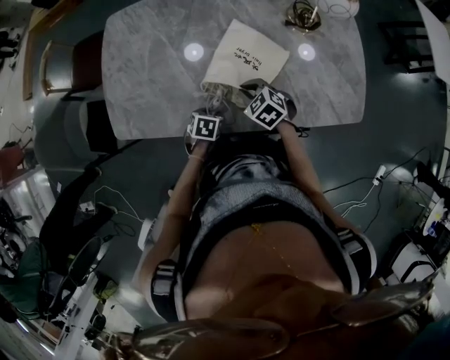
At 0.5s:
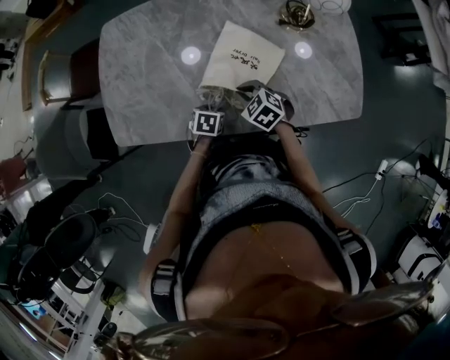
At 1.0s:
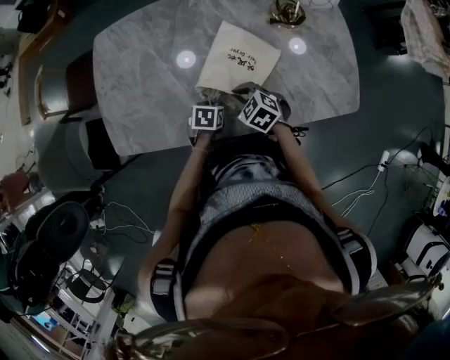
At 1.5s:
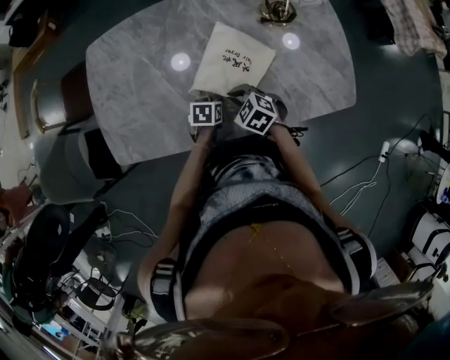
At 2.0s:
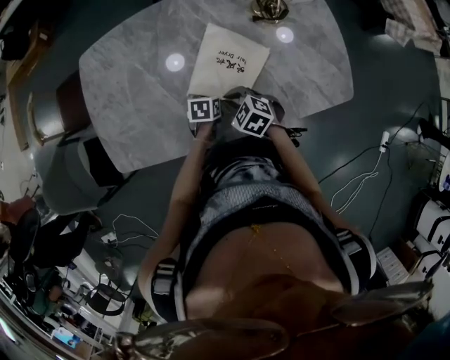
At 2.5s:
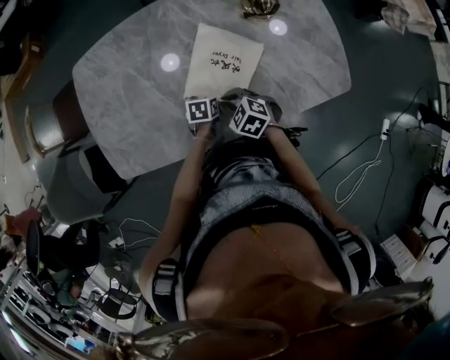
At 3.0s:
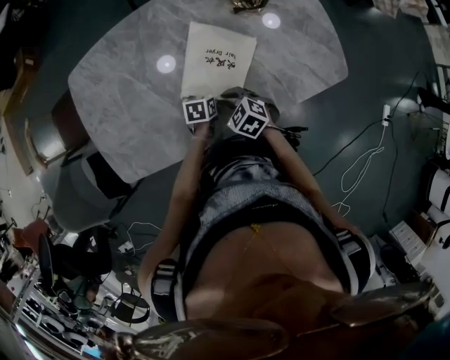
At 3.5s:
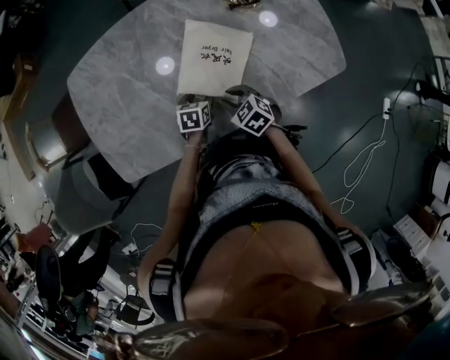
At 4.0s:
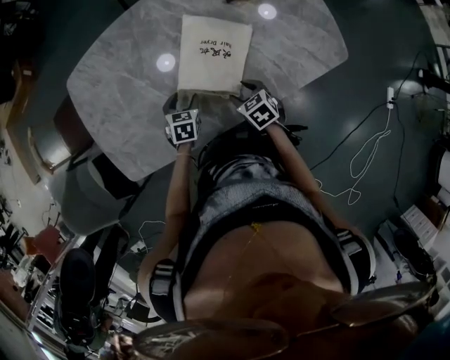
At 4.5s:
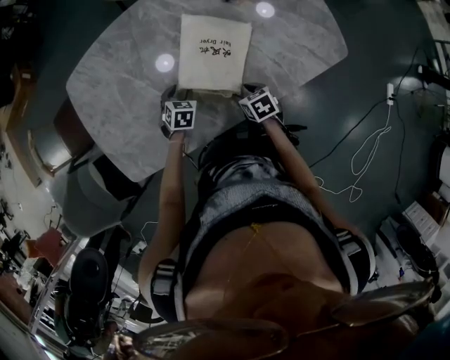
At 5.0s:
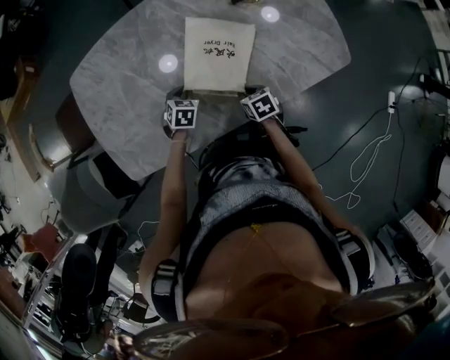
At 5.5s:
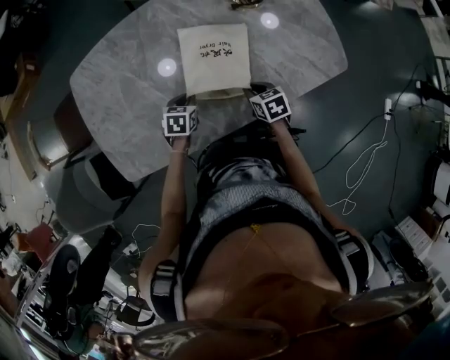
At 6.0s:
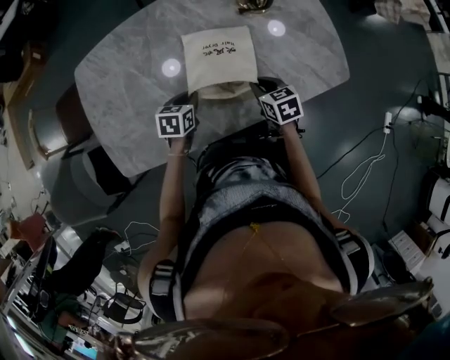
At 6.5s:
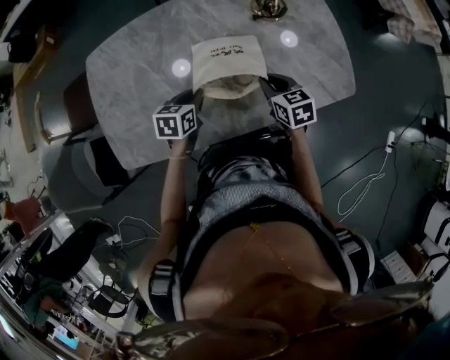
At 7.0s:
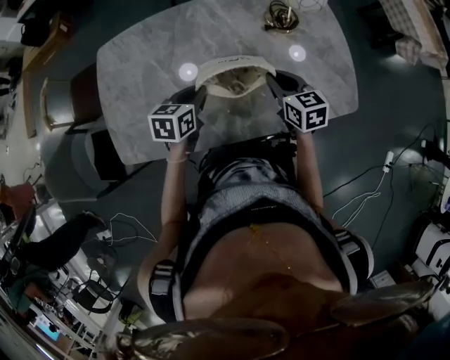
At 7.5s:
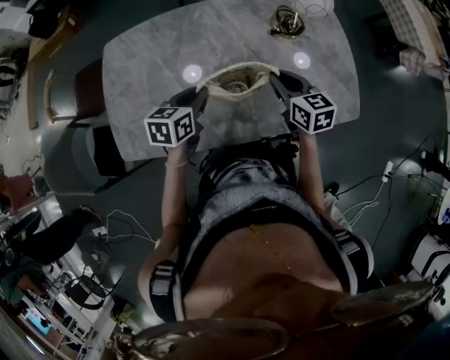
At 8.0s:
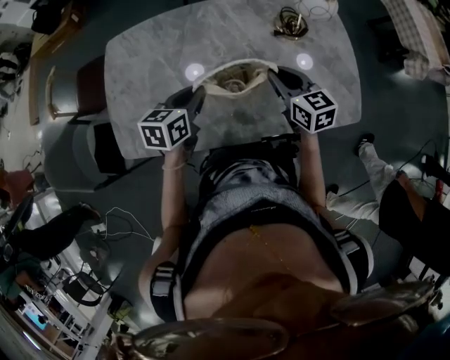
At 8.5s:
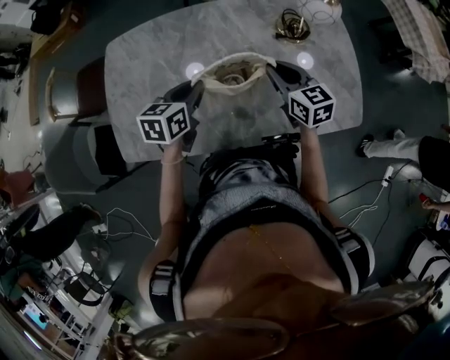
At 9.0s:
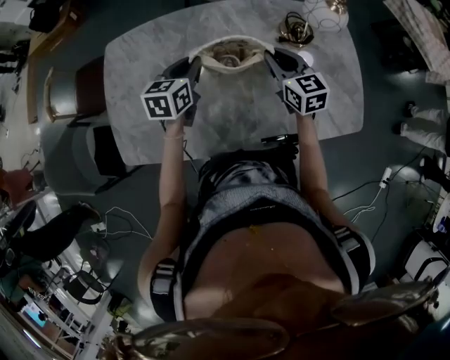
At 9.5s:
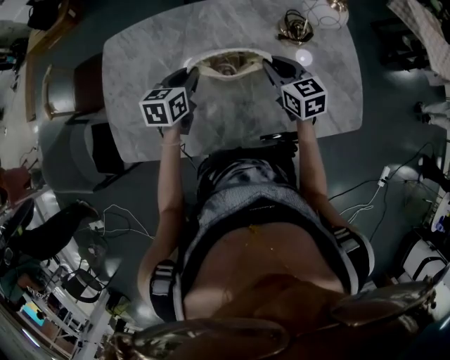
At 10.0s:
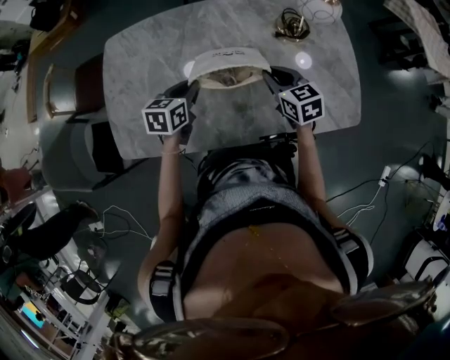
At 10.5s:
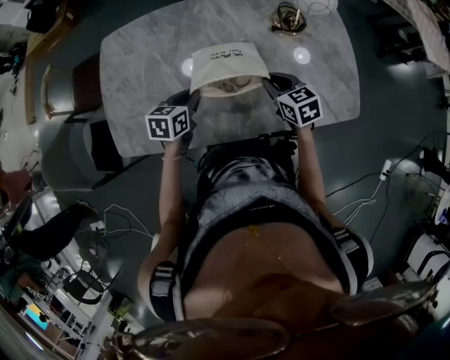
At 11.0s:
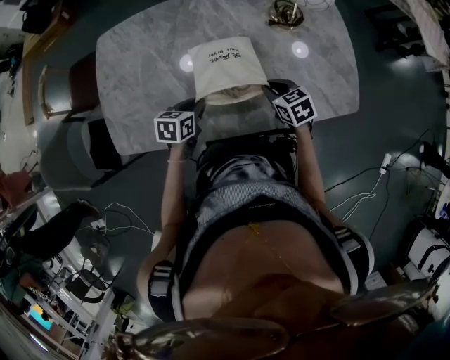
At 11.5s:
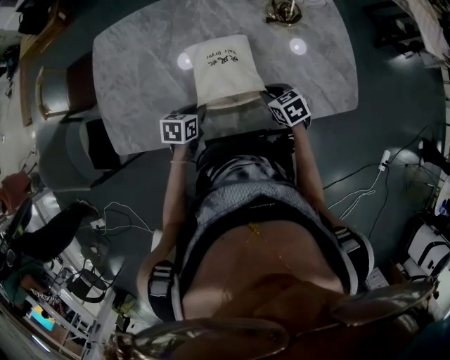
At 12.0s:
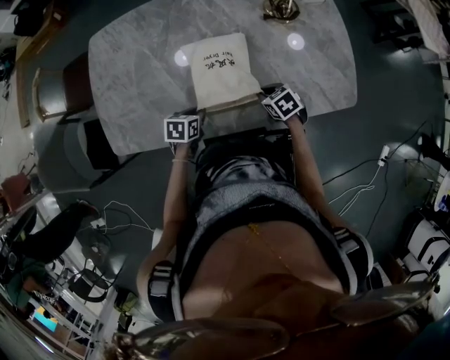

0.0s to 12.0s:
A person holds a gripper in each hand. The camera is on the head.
0.0s to 2.0s: The left gripper shifts roughly 15 cm forward and to the right.
2.0s to 4.0s: The right gripper moves to the right, roughly 5 cm, rotates about 40 degrees, and opens up; the left gripper travels to the left by approximately 10 cm, and turns by approximately 30 degrees.
4.0s to 6.0s: The right gripper heads upward and to the right, covering roughly 10 cm, and closes its fingers. The left gripper moves upward, about 5 cm, and closes its fingers.
6.0s to 8.0s: The right gripper goes about 15 cm upward and forward, and swivels approximately 30 degrees, while the left gripper travels upward by some 15 cm, and swivels about 20 degrees.
8.0s to 10.0s: The right gripper travels forward and back again, approximately 10 cm each way, while the left gripper heads downward, covering approximately 5 cm, and travels forward and back again, some 10 cm each way.
10.0s to 12.0s: The grippers both shift downward and backward by roughly 20 cm. The left gripper changes its angle by some 20 degrees. Meanwhile the right gripper swivels about 30 degrees.

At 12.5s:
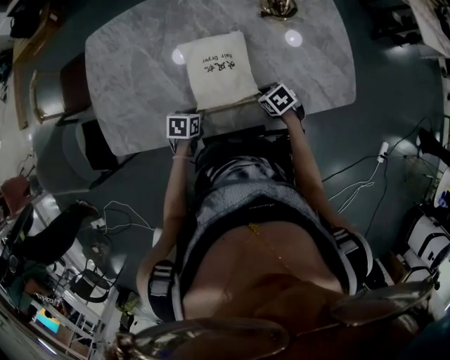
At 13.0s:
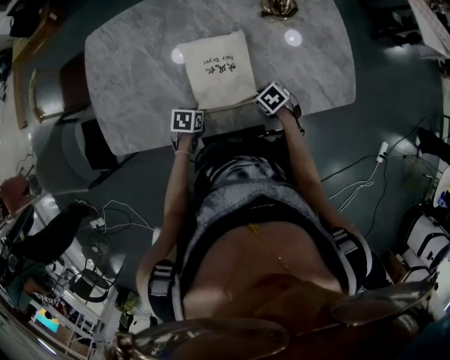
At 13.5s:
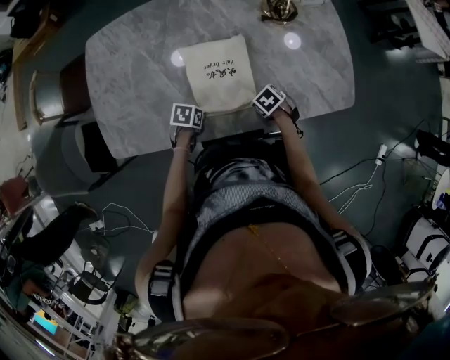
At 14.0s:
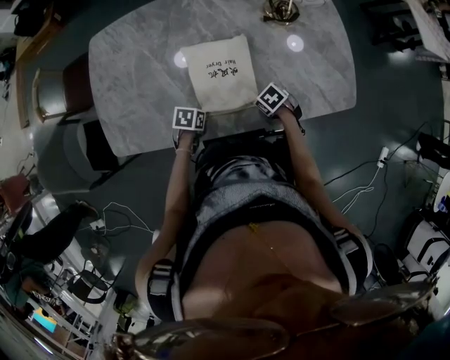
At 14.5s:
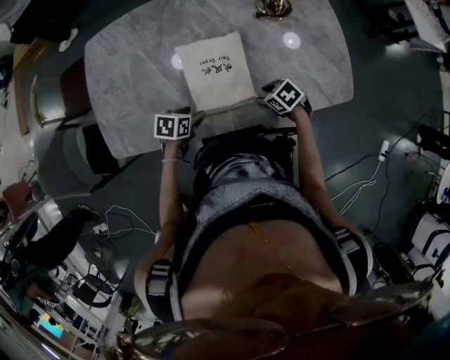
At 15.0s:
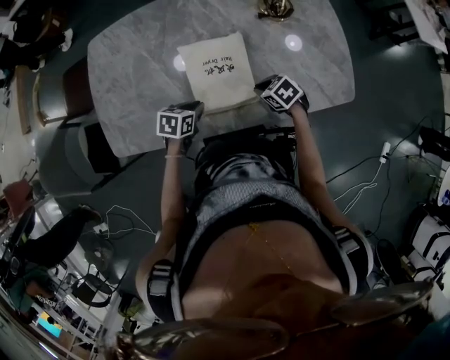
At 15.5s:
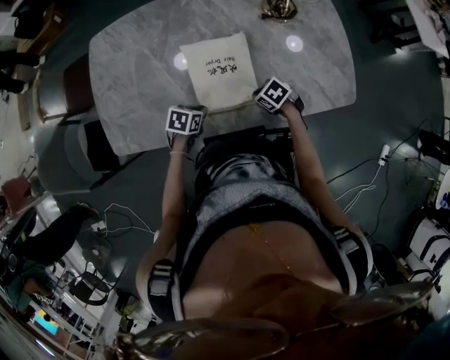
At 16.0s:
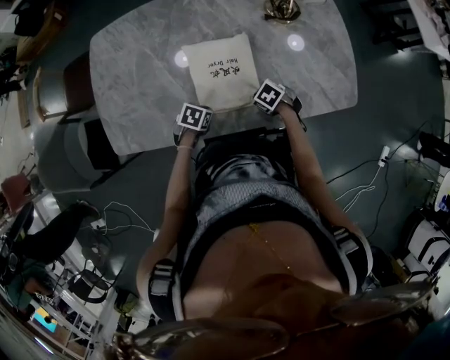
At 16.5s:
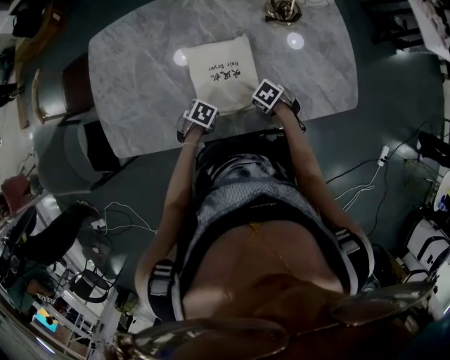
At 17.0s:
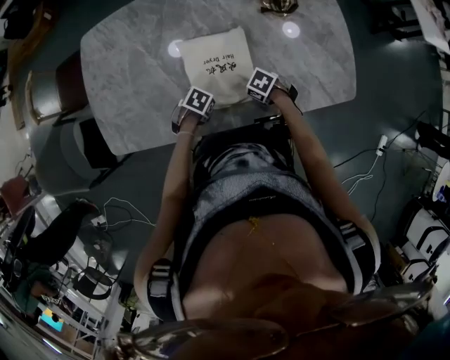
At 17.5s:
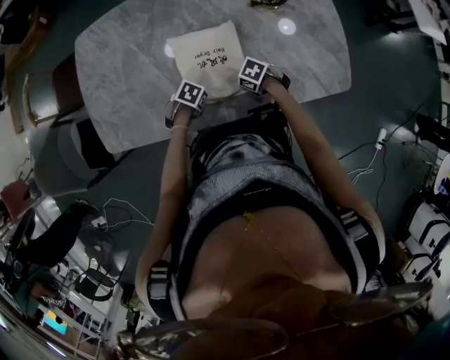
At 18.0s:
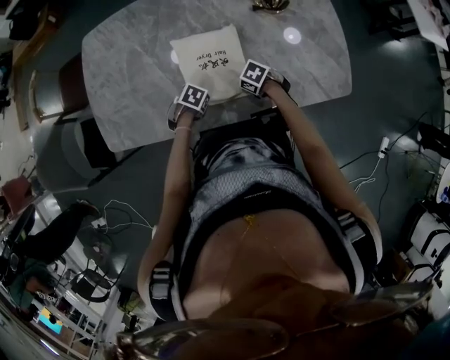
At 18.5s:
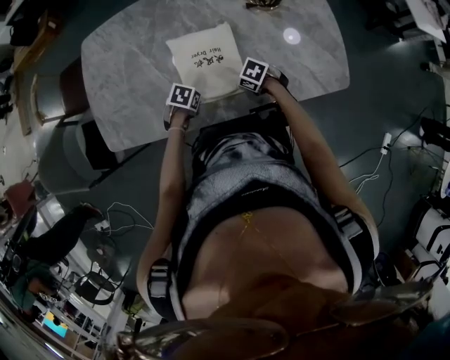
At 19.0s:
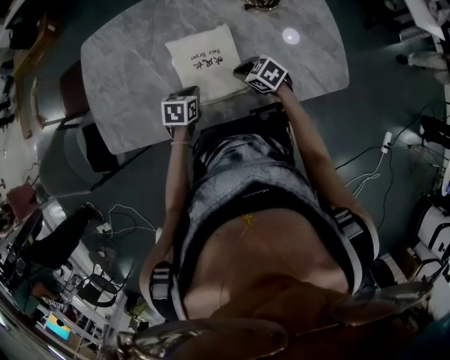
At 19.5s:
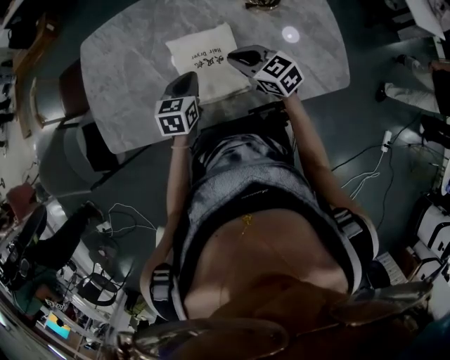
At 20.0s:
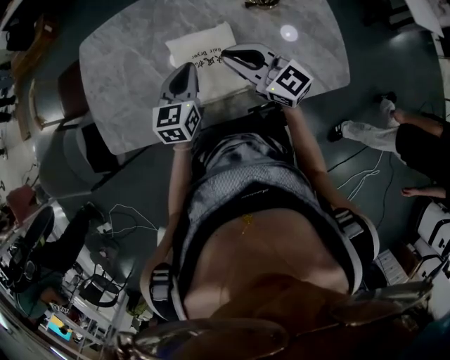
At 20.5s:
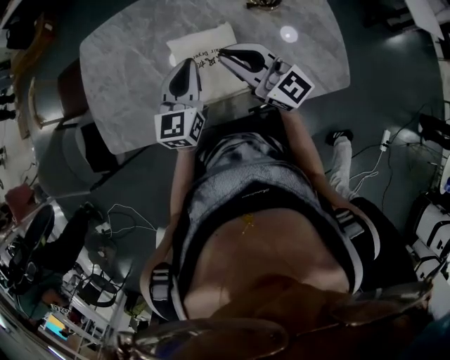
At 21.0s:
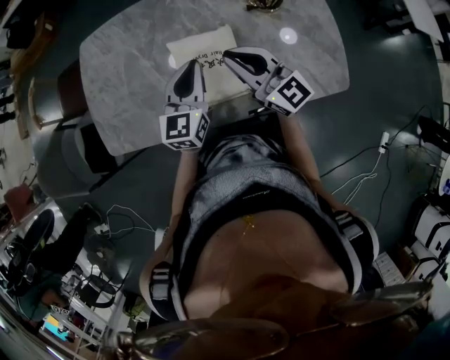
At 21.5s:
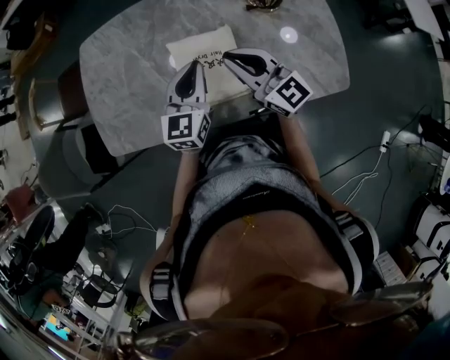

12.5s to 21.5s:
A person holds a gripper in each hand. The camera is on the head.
12.5s to 14.5s: The right gripper opens; the left gripper opens up.
14.5s to 17.0s: The two grippers go some 5 cm downward. The right gripper closes; the left gripper rotates approximately 30 degrees, and closes its fingers.
17.0s to 19.5s: The two grippers go some 20 cm upward. The left gripper points its fingers approximately 30 degrees further upward, while the right gripper tilts its fingers about 40 degrees upward.
19.5s to 21.5s: The two grippers go some 10 cm upward. The left gripper rotates roughly 30 degrees; the right gripper swivels approximately 30 degrees.

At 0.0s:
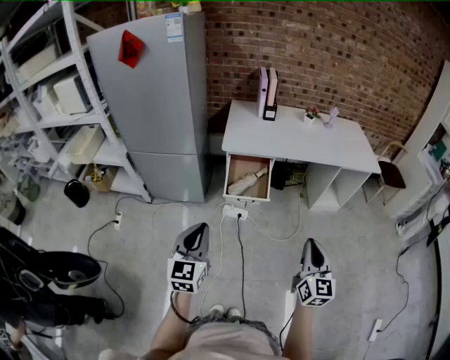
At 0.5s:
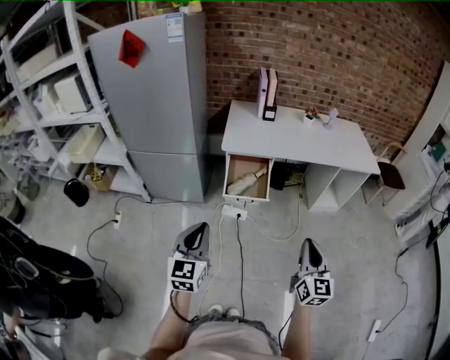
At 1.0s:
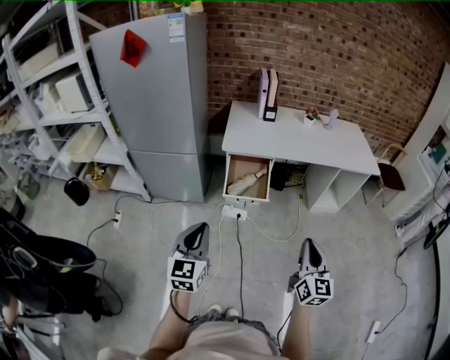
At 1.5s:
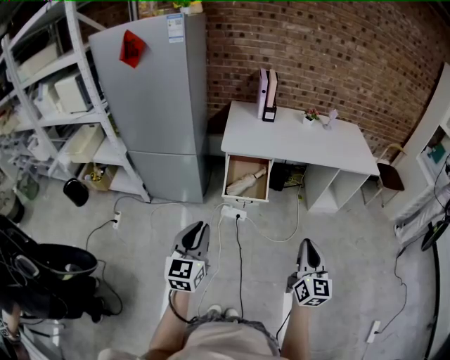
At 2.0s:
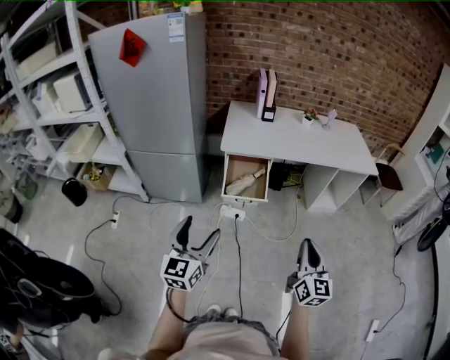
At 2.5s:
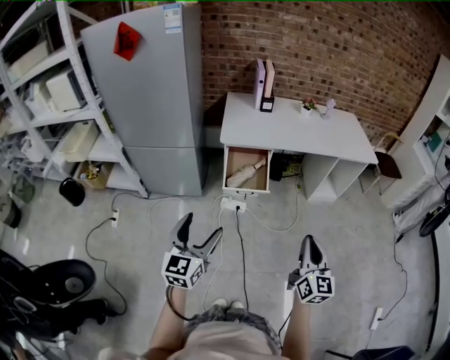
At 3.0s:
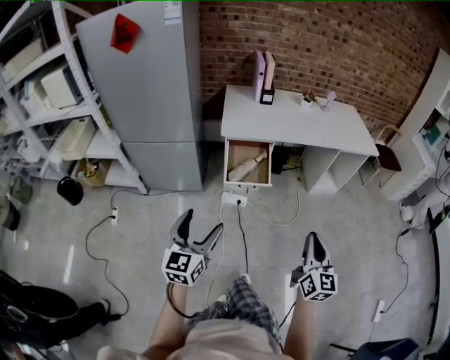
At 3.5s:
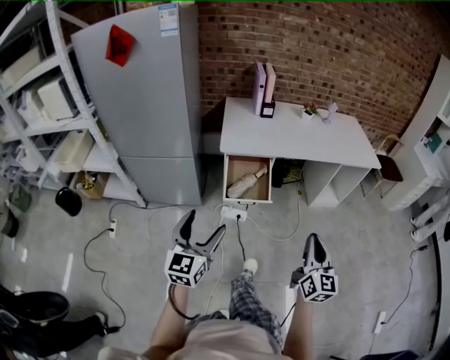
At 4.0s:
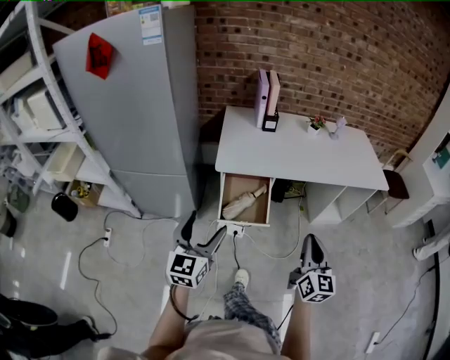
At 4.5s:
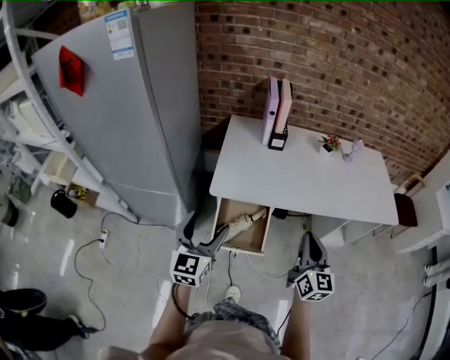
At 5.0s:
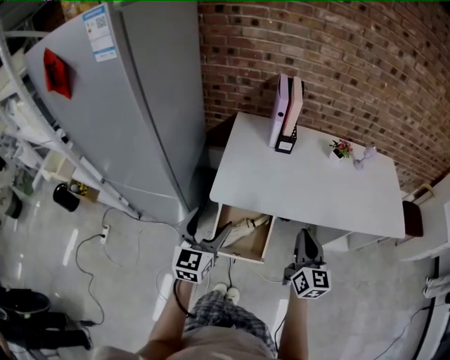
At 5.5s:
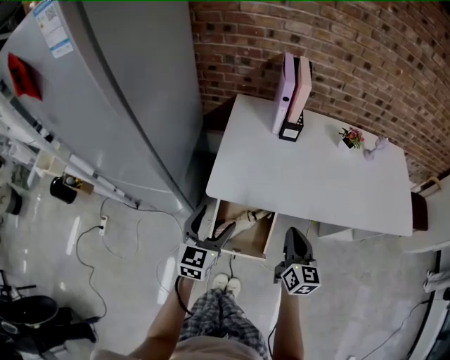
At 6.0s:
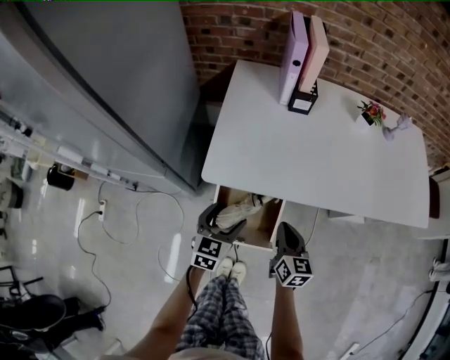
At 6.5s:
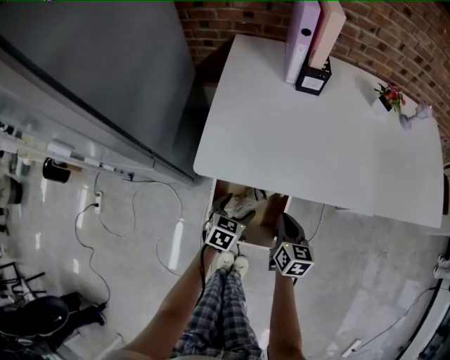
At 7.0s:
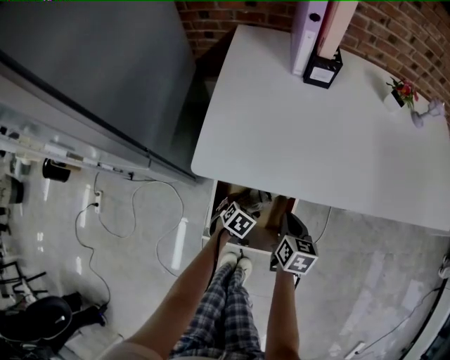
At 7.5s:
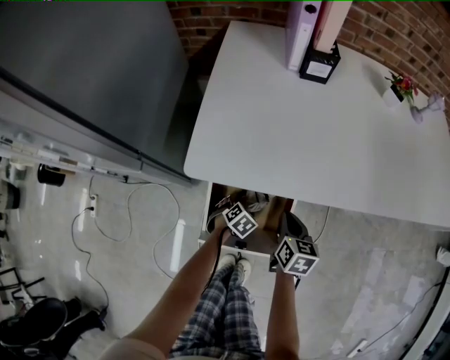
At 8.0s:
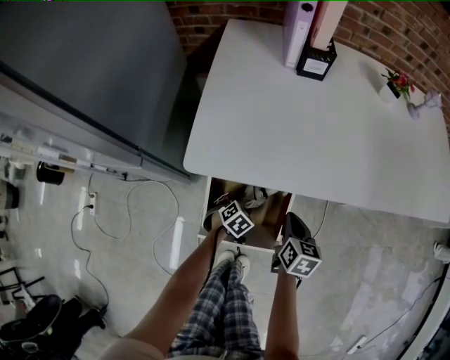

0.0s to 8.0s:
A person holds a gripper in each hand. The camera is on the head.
0.0s to 2.0s: The left gripper opens its fingers.
2.0s to 4.0s: The two grippers go some 25 cm forward.
4.0s to 6.0s: Both grippers travel together forward and downward, roughly 50 cm. The left gripper rotates about 30 degrees, while the right gripper rotates about 30 degrees.
6.0s to 8.0s: The right gripper is displaced downward by about 15 cm. Meanwhile the left gripper shifts roughly 35 cm downward, and tilts its fingers roughly 40 degrees downward.
